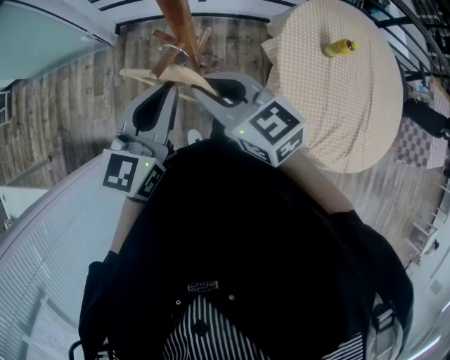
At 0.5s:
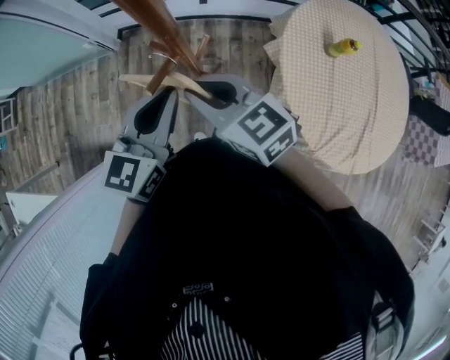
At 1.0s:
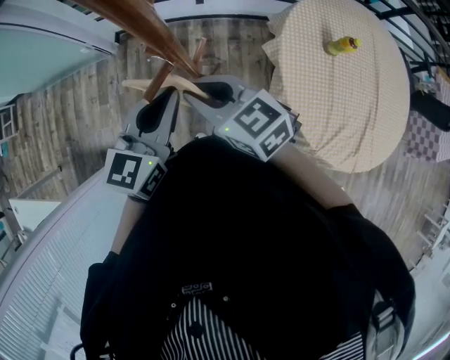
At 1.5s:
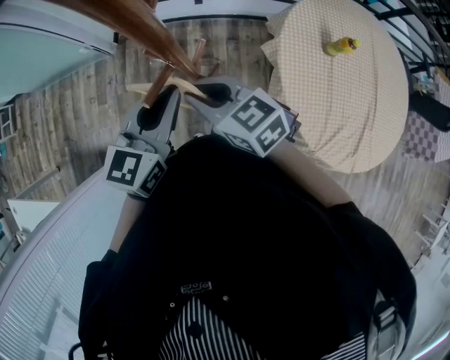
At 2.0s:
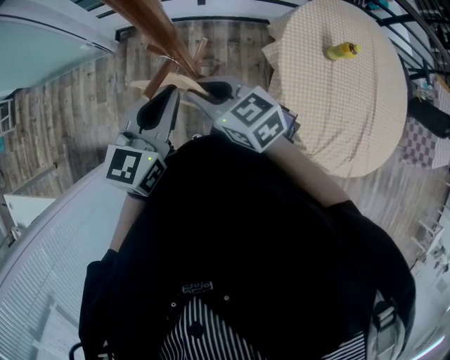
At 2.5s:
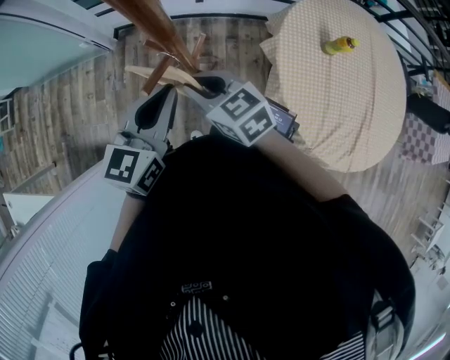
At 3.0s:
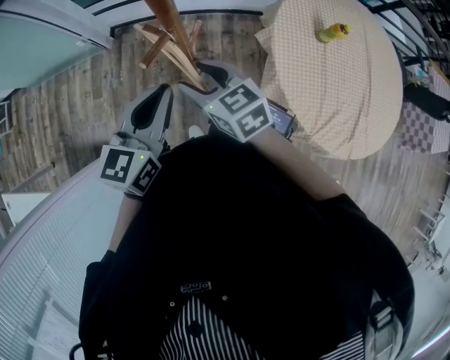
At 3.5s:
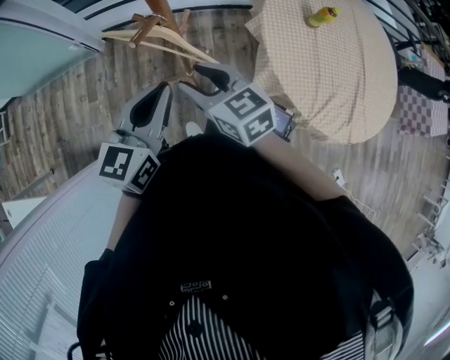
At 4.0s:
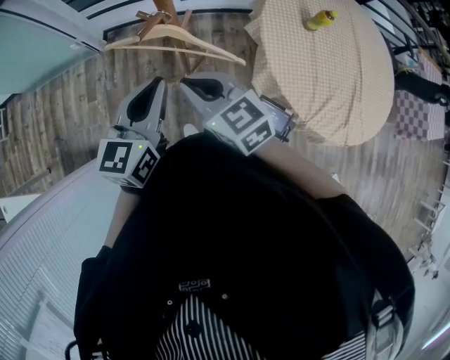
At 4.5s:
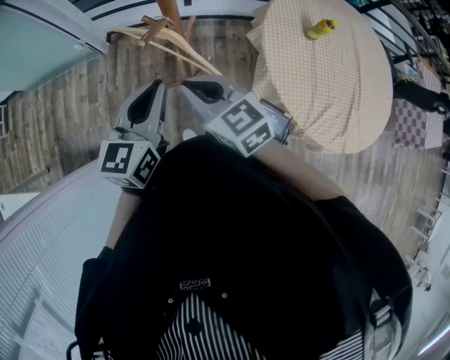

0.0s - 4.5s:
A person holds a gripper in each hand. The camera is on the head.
0.0s - 2.0s: The left gripper moves some 5 cm; the right gripper travels downward by roughly 5 cm.
2.0s - 4.5s: Both grippers travel together backward, some 10 cm. The right gripper opens, then closes again.

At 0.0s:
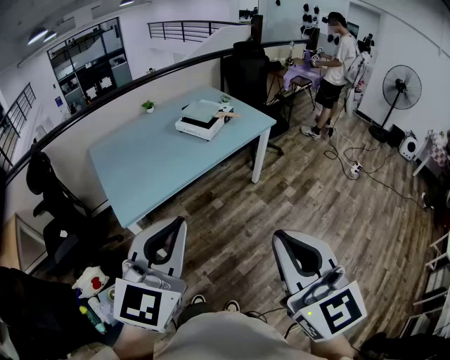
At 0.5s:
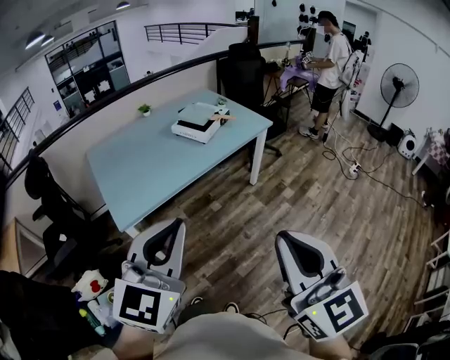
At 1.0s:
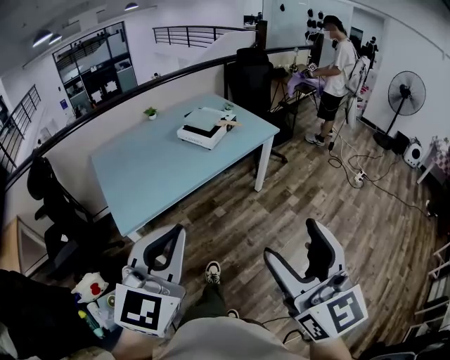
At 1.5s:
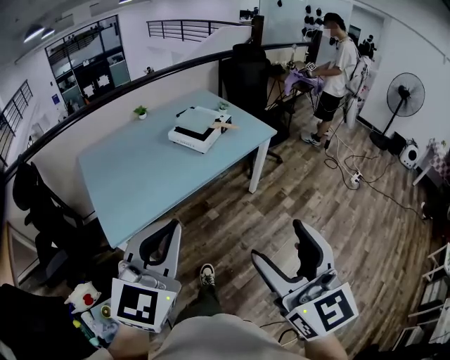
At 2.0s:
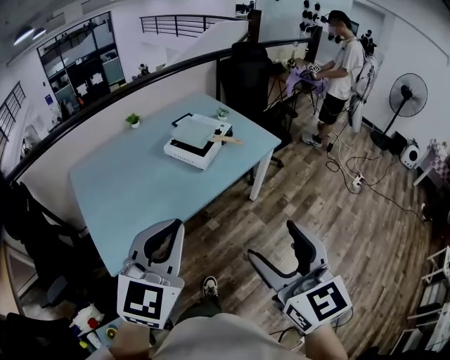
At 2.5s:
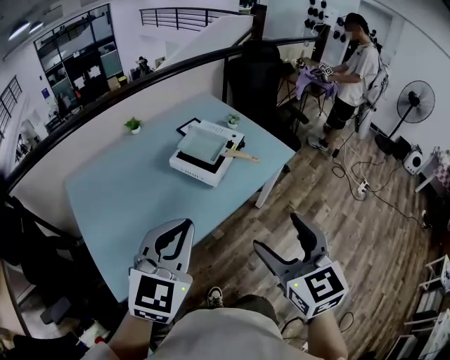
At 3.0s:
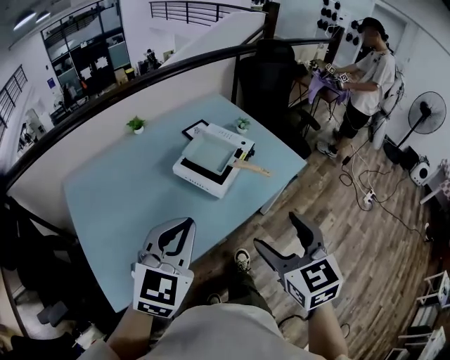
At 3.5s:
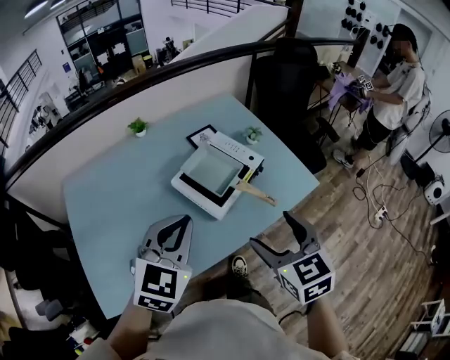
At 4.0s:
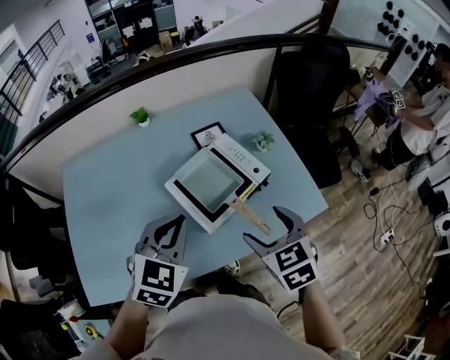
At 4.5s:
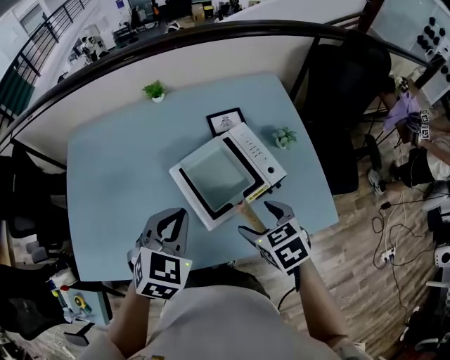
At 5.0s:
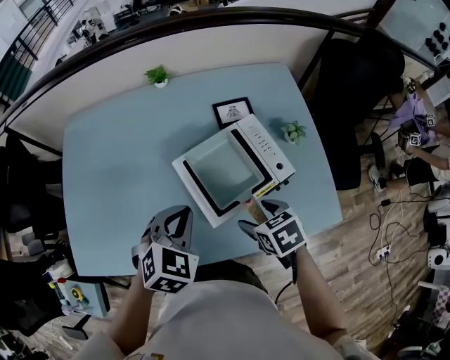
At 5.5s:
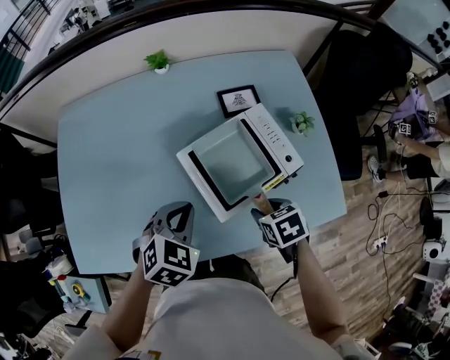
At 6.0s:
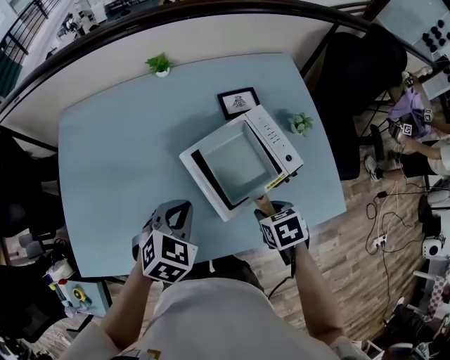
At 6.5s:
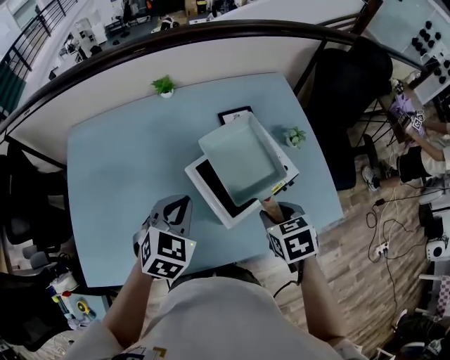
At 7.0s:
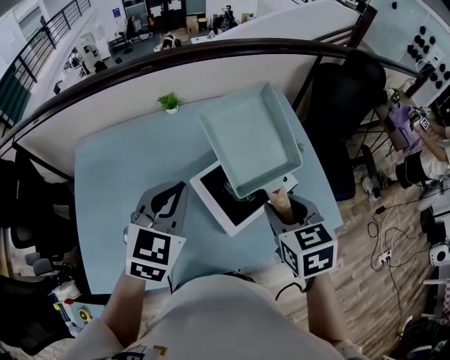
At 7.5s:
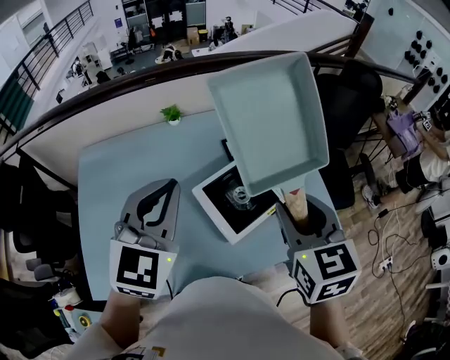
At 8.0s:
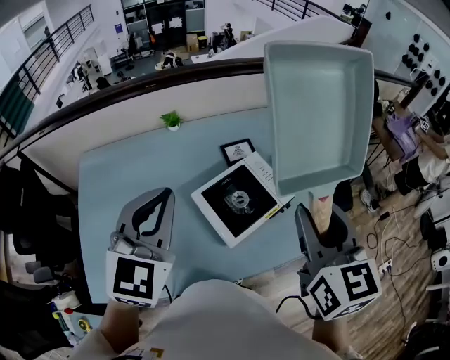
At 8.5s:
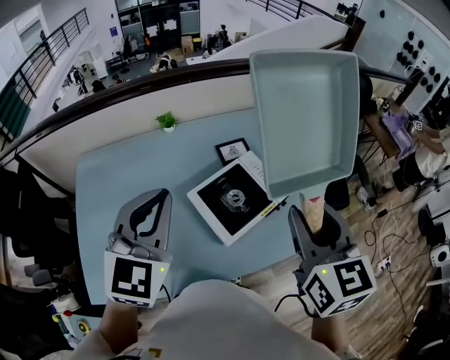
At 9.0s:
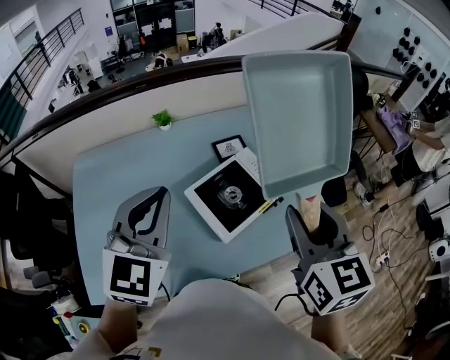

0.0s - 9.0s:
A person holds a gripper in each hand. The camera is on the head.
0.0s - 2.0s: The two grippers go roughly 30 cm forward. The right gripper opens.
2.0s - 4.5s: The two grippers travel together, some 60 cm. The right gripper tilts its fingers about 40 degrees downward; the left gripper angles its fingers downward, by roughly 30 degrees.
4.5s - 7.0s: The left gripper is displaced upward, to the left and forward by roughly 15 cm. Meanwhile the right gripper goes some 10 cm upward, swivels approximately 20 degrees, and closes.
7.0s - 9.0s: The two grippers go some 10 cm upward. The right gripper changes its angle by some 20 degrees.

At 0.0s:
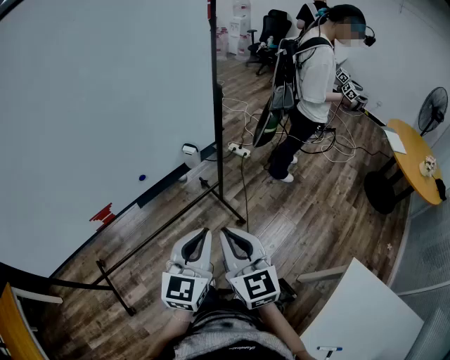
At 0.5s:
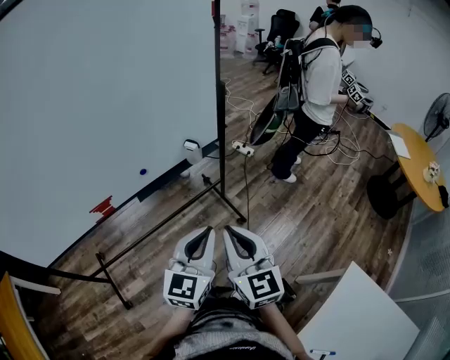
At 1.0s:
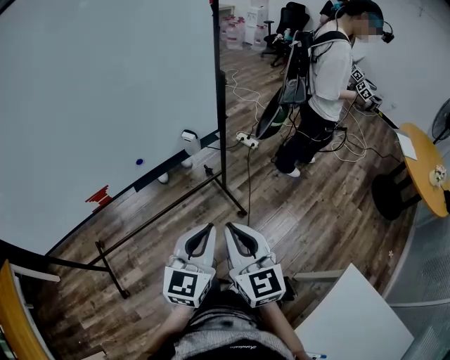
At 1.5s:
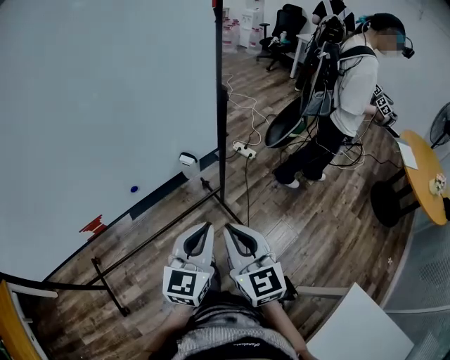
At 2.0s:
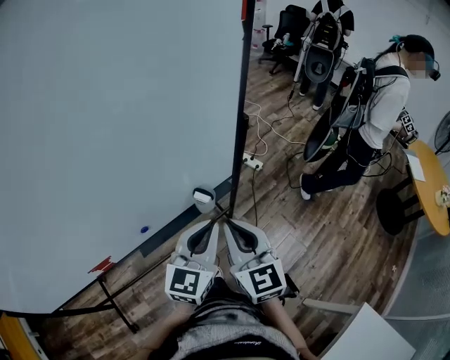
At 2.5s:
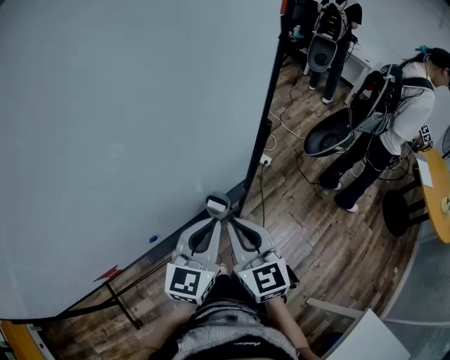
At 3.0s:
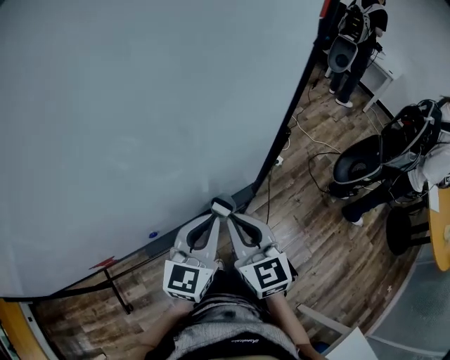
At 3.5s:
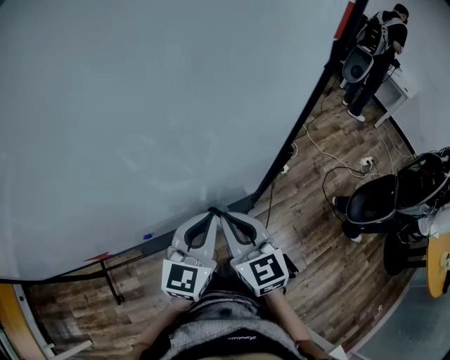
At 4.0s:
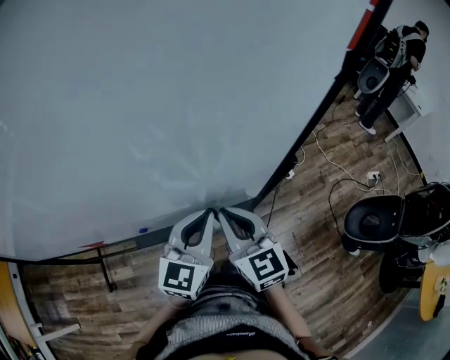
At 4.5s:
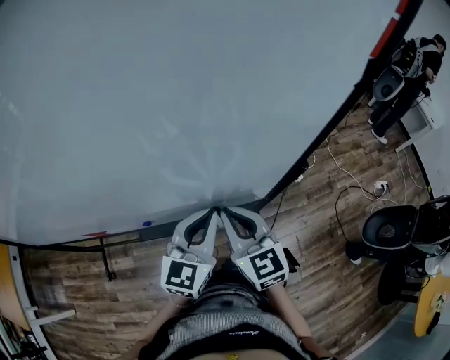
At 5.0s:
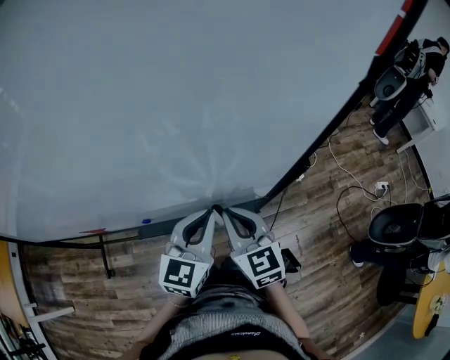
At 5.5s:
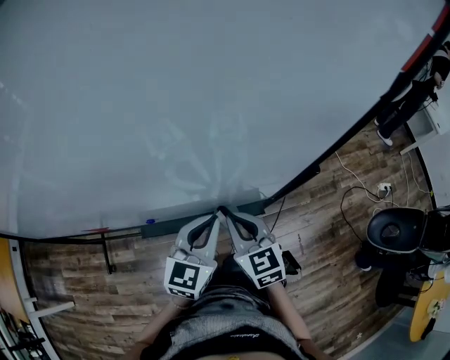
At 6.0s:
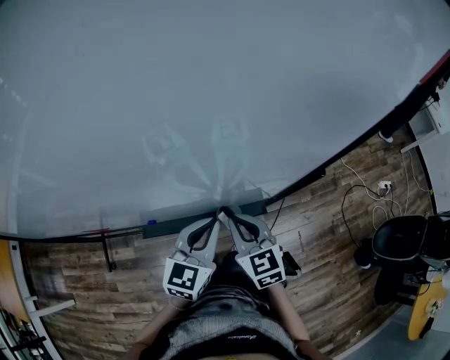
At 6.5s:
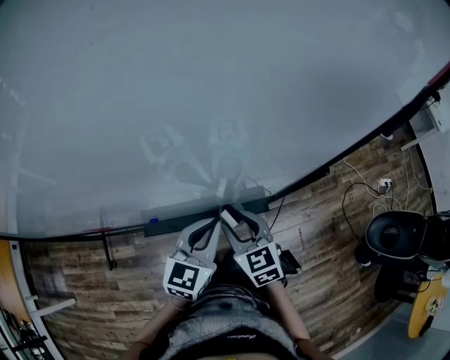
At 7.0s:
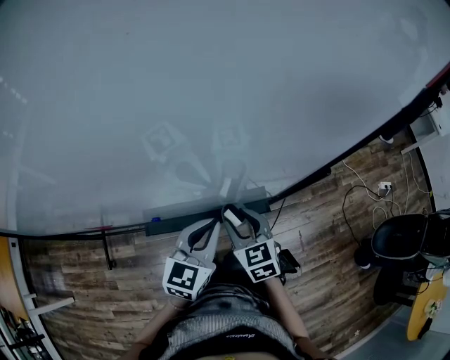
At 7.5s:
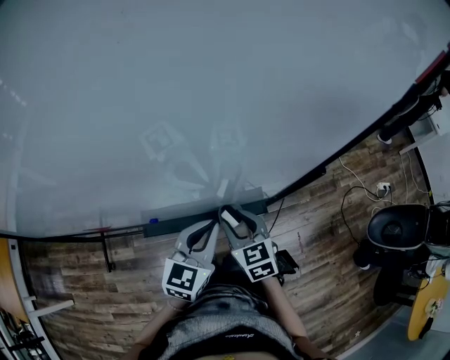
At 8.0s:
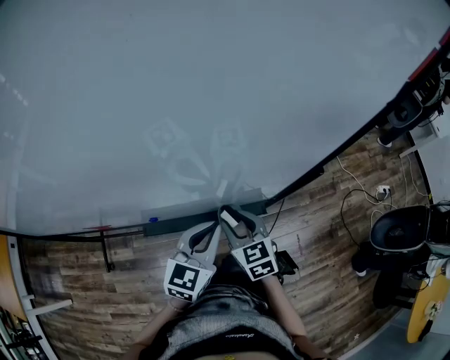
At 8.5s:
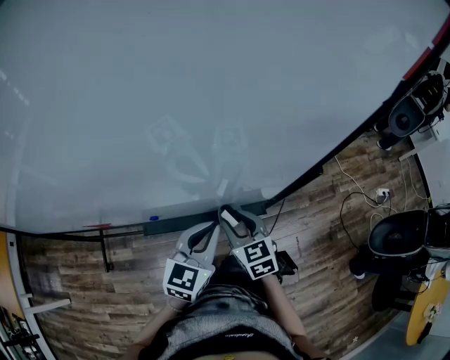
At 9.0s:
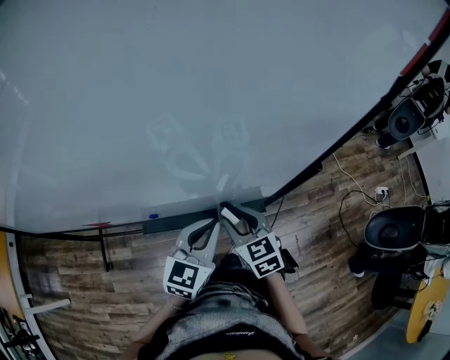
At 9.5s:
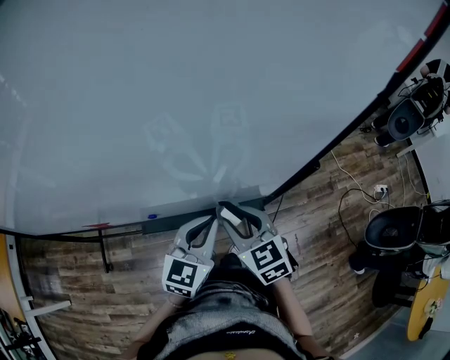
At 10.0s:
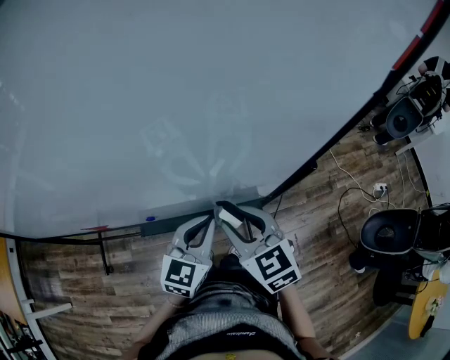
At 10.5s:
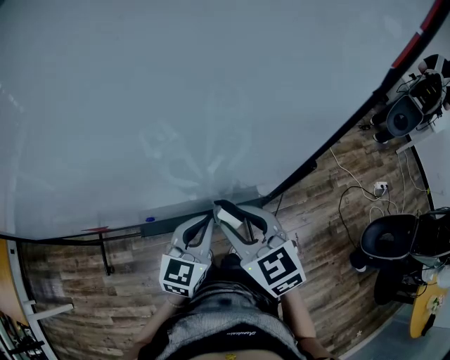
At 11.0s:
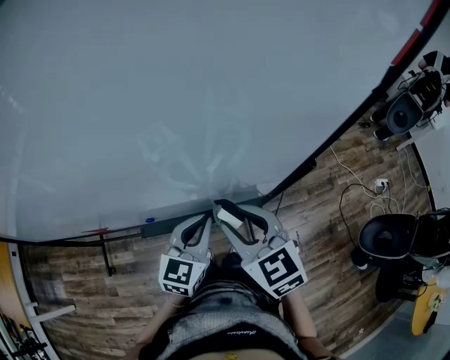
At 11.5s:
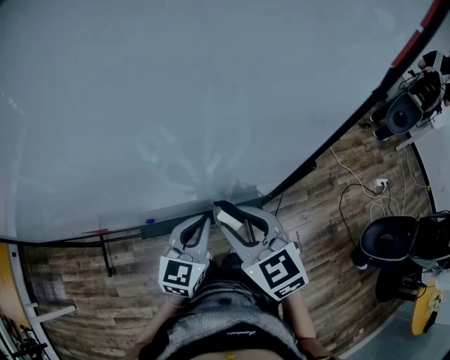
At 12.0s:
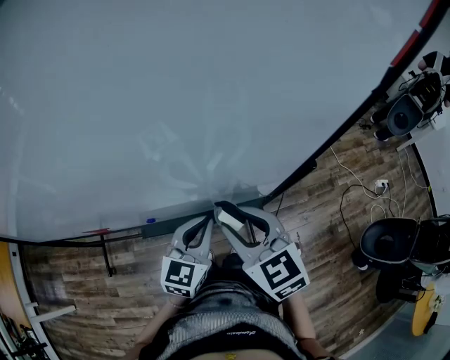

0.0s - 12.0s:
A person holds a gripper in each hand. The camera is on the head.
0.0s - 2.0s: The two grippers go roughly 30 cm forward.
2.0s - 4.0s: The grippers both shift forward by about 15 cm. The left gripper turns by roughly 20 degrees. The right gripper changes its angle by some 30 degrees.
4.0s - 6.0s: The grippers both shift downward by some 10 cm.
6.0s - 8.0s: The right gripper opens up.
8.0s - 10.0s: The right gripper is displaced upward by about 10 cm.
10.0s - 12.0s: The grippers stay close to where they were, moving slightly.

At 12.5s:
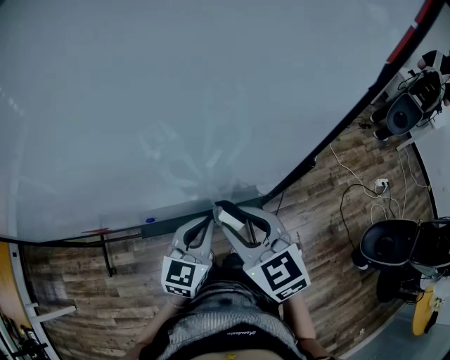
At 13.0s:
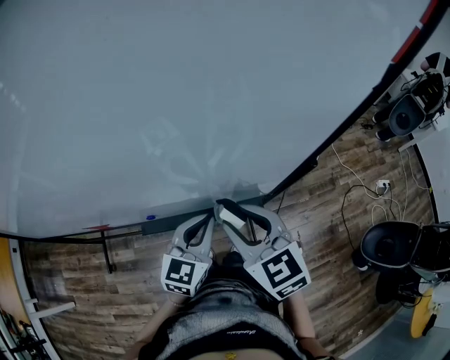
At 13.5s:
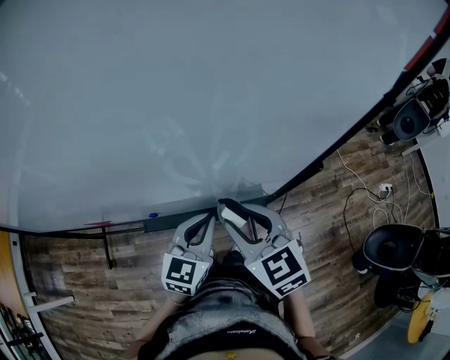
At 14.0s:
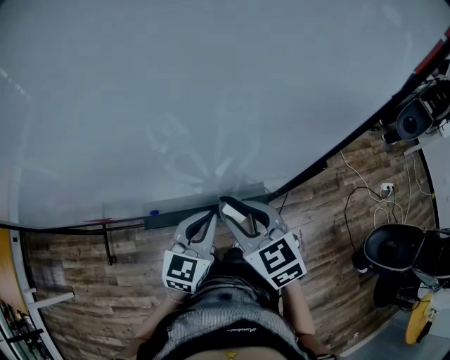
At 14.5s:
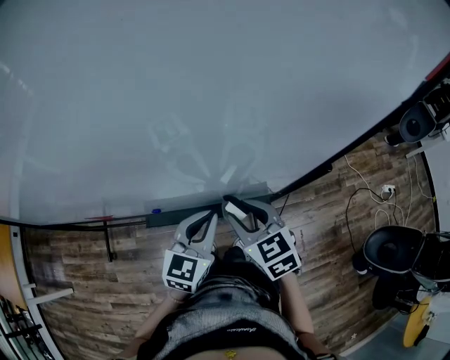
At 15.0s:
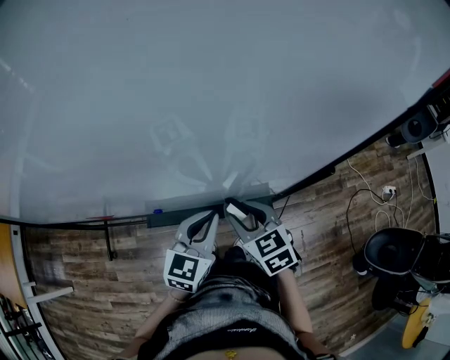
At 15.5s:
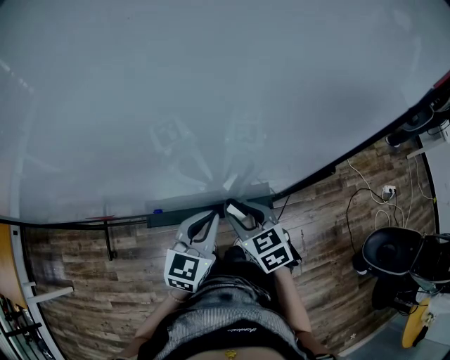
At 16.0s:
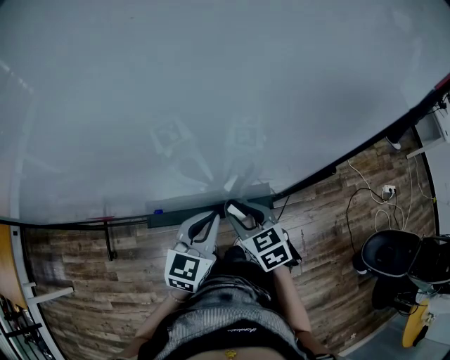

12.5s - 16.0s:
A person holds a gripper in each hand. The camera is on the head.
12.5s - 14.5s: The right gripper heads downward, covering approximately 10 cm.
14.5s - 16.0s: The right gripper shifts approximately 5 cm downward.
